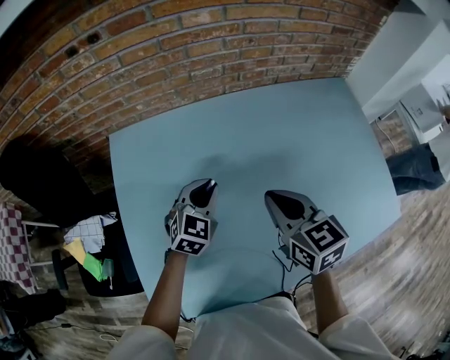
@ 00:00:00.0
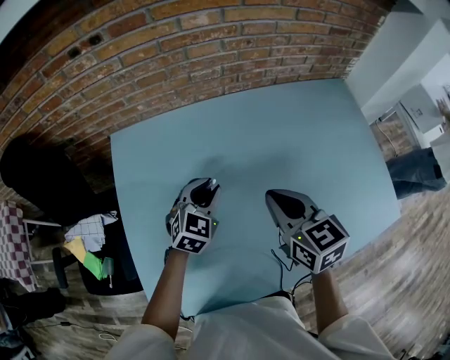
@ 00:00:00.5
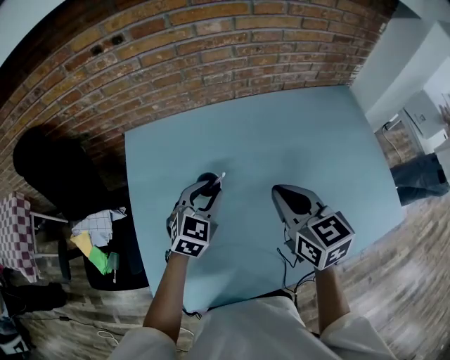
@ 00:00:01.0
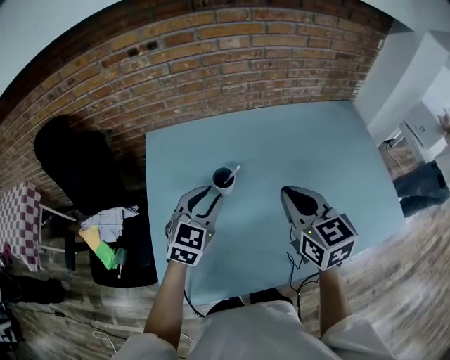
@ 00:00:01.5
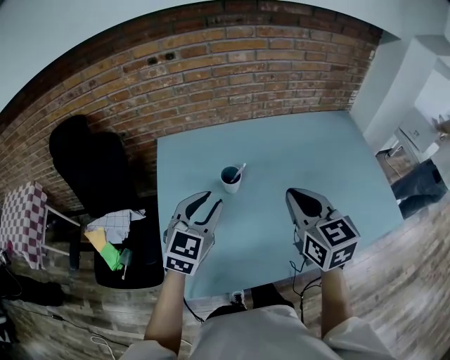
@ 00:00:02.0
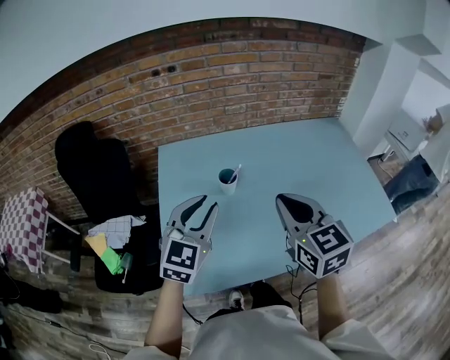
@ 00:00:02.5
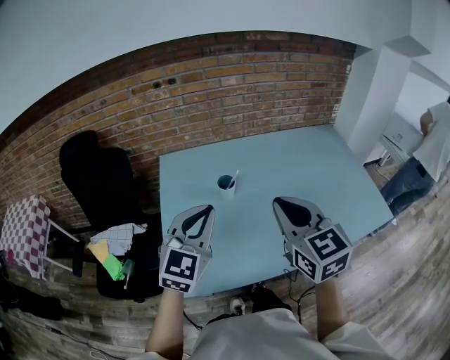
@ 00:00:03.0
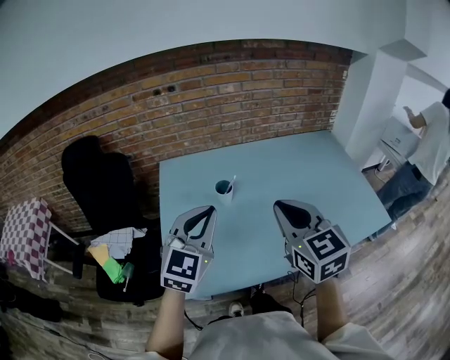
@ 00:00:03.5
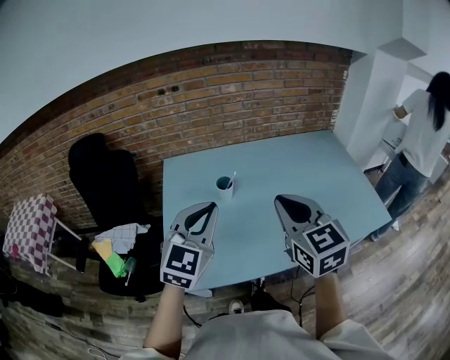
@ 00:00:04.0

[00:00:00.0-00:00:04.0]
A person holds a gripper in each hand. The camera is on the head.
00:00:00.0 to 00:00:02.0: The right gripper travels backward and upward by roughly 15 cm. The left gripper moves backward, upward and to the left, some 25 cm.
00:00:02.0 to 00:00:04.0: Both grippers travel together backward and upward, roughly 15 cm. The left gripper closes up.

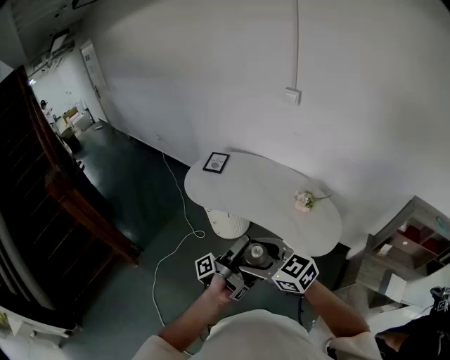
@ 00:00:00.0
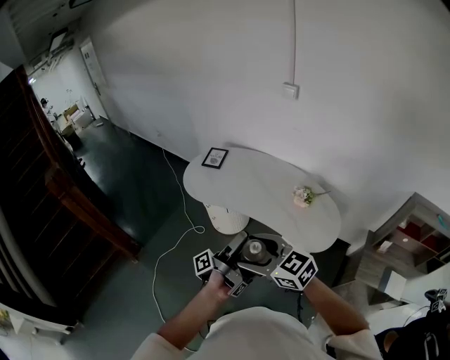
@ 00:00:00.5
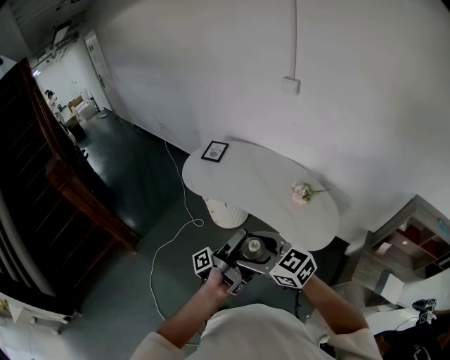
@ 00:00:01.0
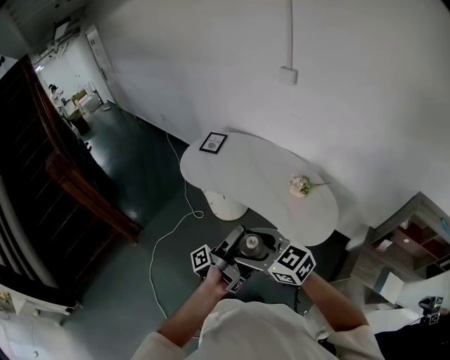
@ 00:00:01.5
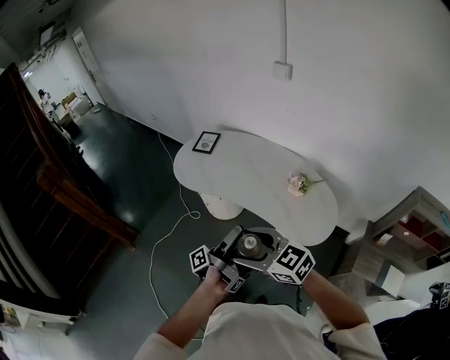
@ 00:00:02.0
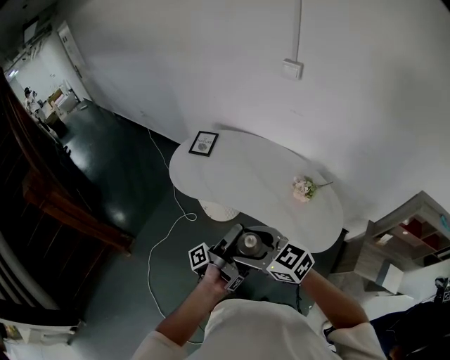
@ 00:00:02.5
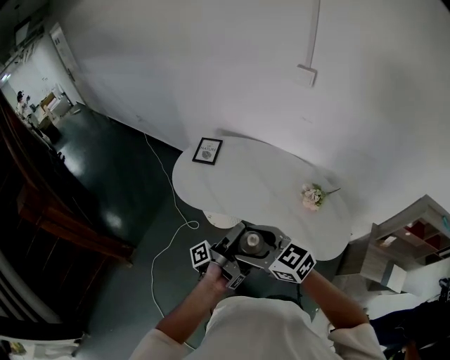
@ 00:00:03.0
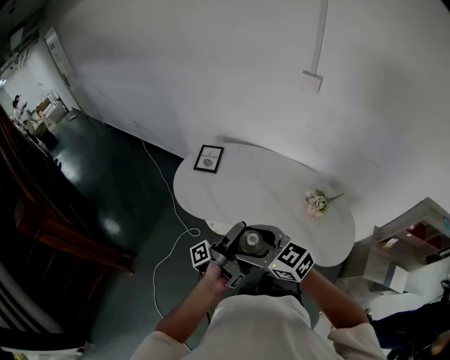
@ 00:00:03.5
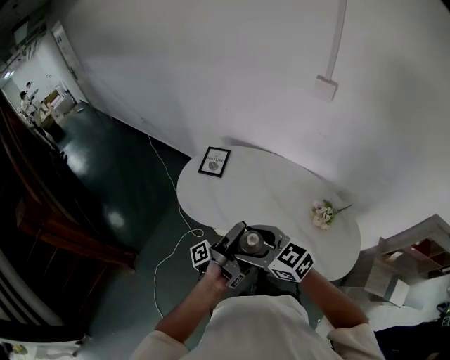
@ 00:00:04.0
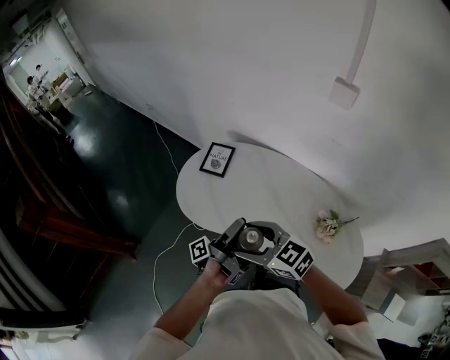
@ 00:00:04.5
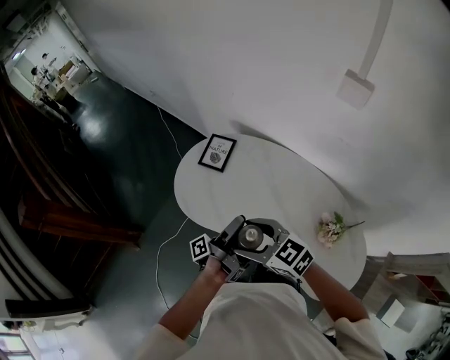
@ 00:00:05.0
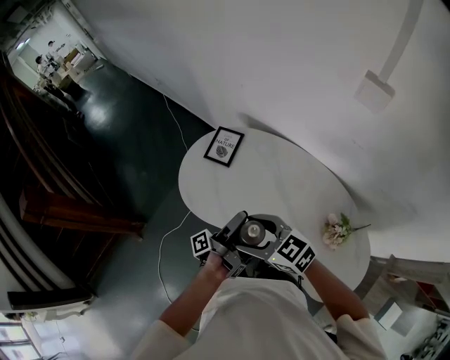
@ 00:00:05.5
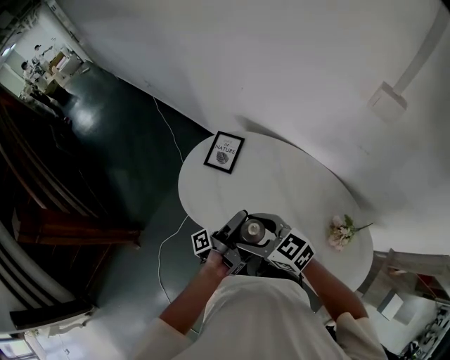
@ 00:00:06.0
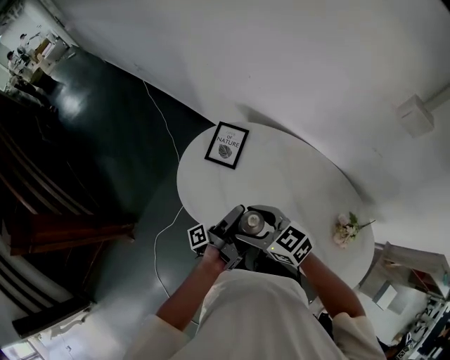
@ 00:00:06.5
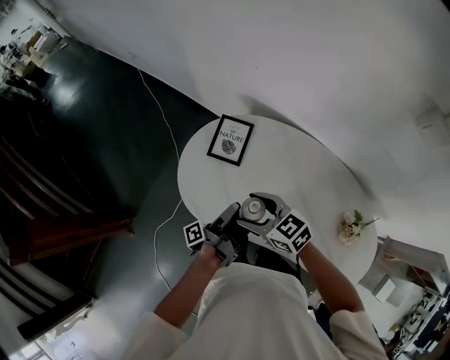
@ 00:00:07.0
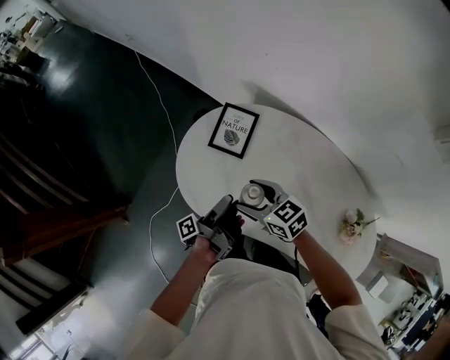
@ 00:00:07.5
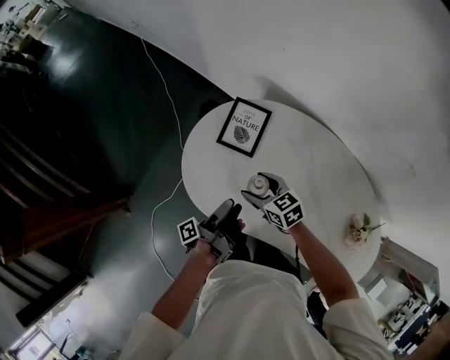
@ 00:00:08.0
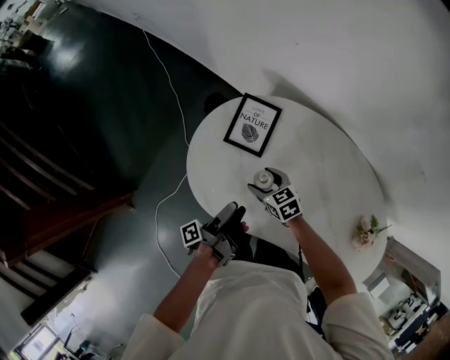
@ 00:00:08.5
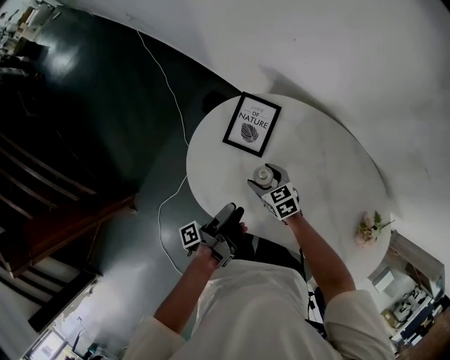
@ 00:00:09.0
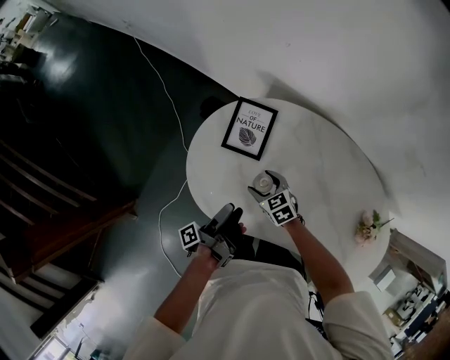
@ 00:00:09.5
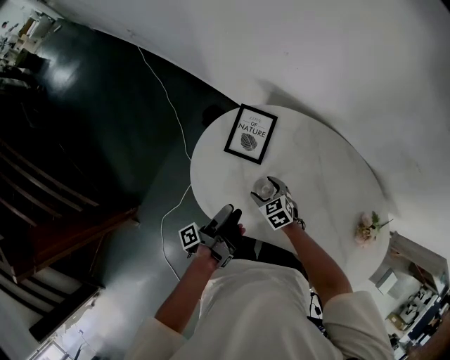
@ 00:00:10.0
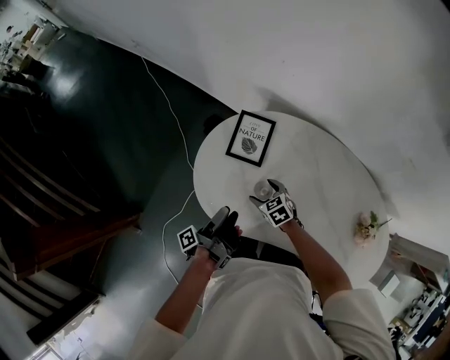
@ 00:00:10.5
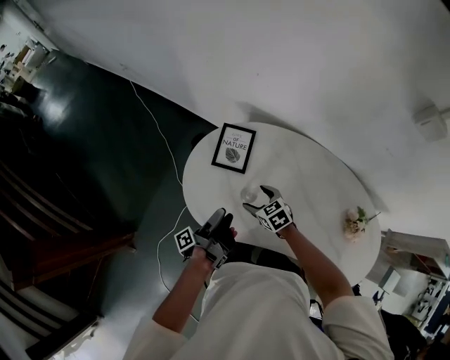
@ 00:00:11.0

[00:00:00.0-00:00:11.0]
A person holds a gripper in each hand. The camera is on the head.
00:00:00.0 to 00:00:02.0: The right gripper shifts by about 10 cm.
00:00:02.0 to 00:00:03.5: The right gripper shifts by roughly 25 cm.
00:00:03.5 to 00:00:05.5: The right gripper ends up roughly 25 cm from where it was.
00:00:05.5 to 00:00:07.5: The right gripper shifts by some 30 cm, and turns by approximately 20 degrees.
00:00:07.5 to 00:00:09.0: The right gripper goes some 20 cm downward.
00:00:09.0 to 00:00:11.0: The right gripper goes about 5 cm upward.

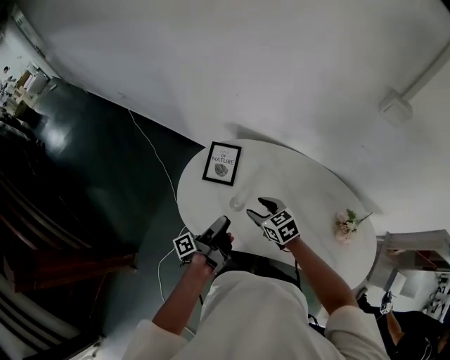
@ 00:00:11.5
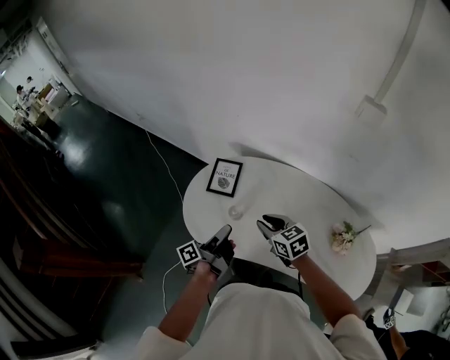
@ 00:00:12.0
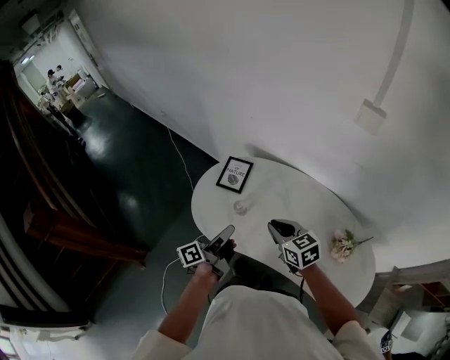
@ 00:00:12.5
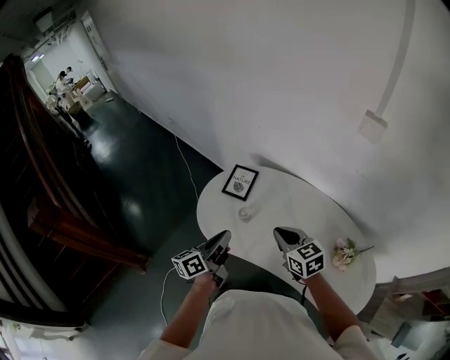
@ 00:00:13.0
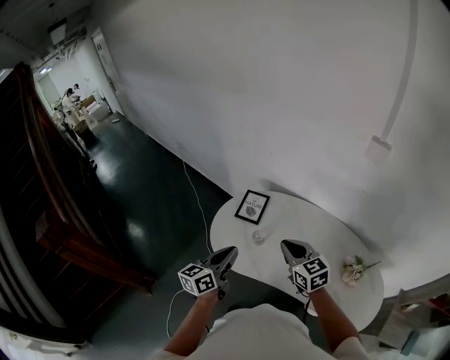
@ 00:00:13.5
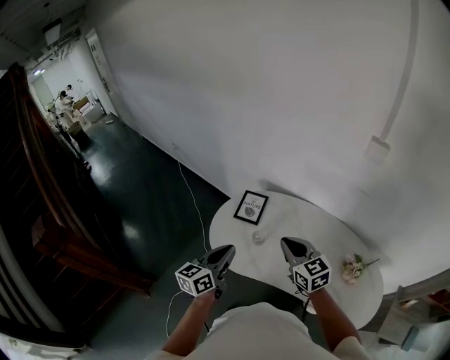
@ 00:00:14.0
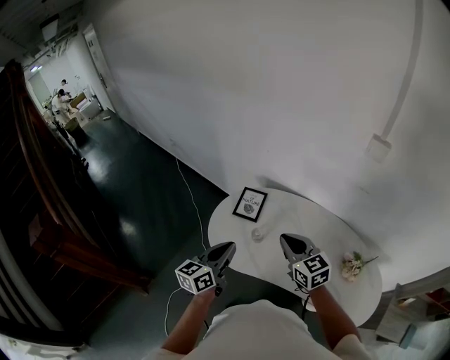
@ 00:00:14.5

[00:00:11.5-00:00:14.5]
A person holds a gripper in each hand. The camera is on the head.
00:00:11.5 to 00:00:13.0: The right gripper shifts approximately 15 cm upward, and closes its fingers.
00:00:13.0 to 00:00:14.5: The right gripper travels upward by some 5 cm.

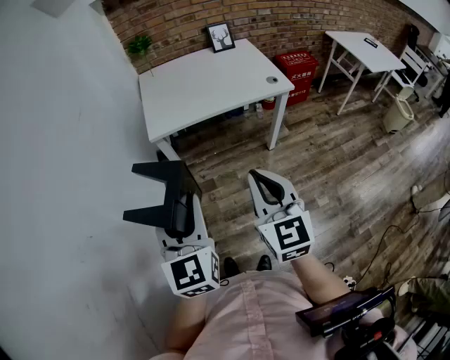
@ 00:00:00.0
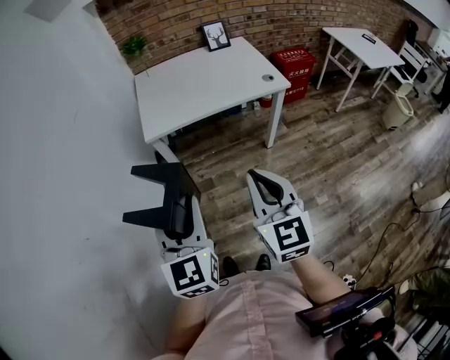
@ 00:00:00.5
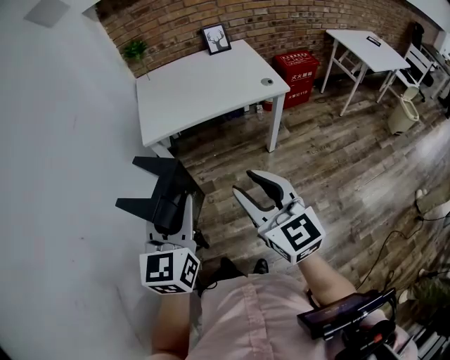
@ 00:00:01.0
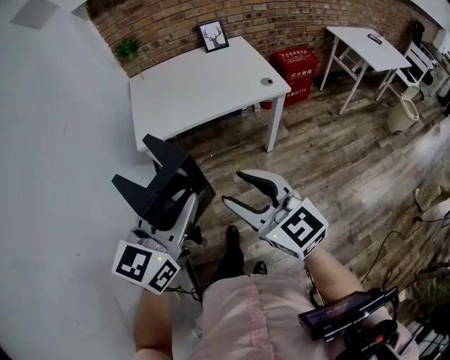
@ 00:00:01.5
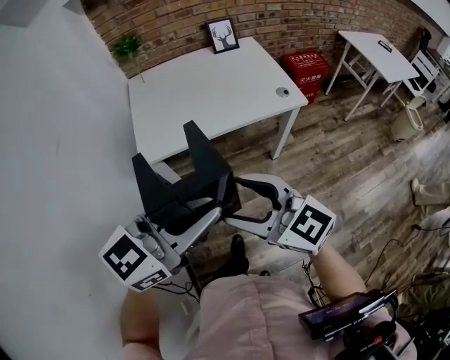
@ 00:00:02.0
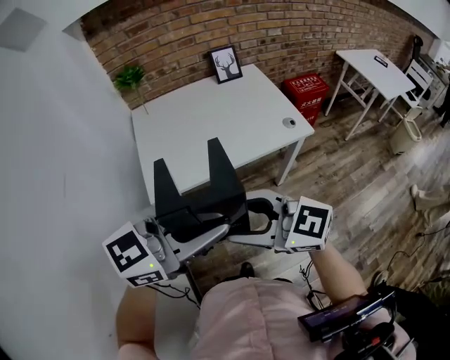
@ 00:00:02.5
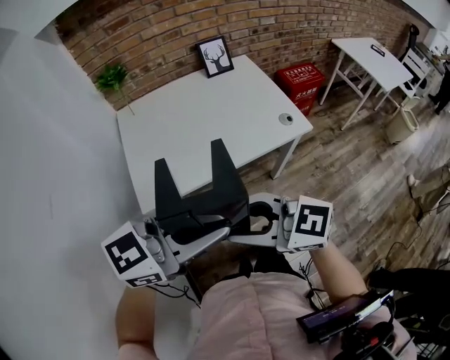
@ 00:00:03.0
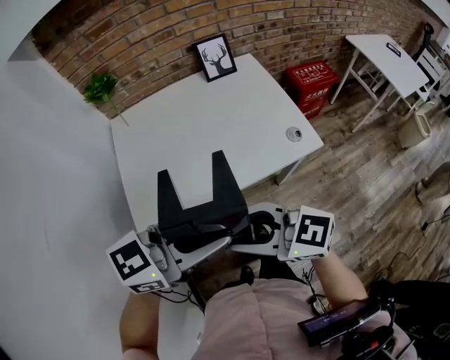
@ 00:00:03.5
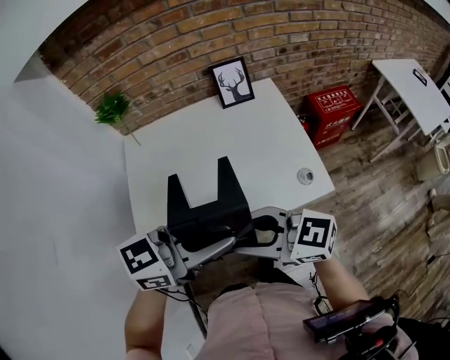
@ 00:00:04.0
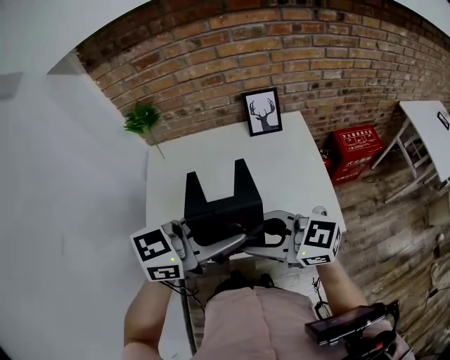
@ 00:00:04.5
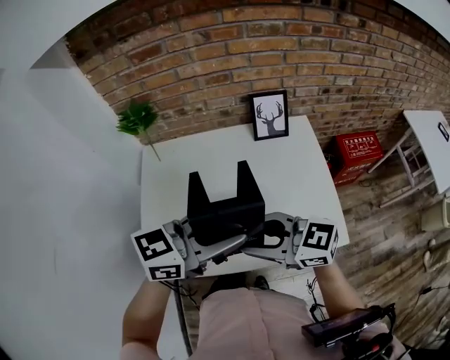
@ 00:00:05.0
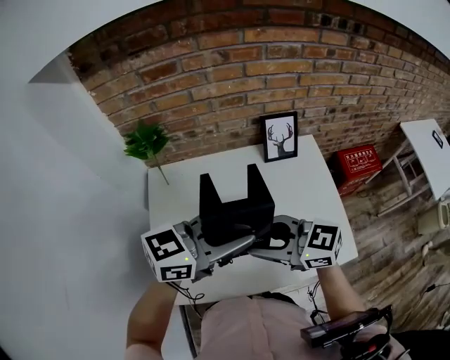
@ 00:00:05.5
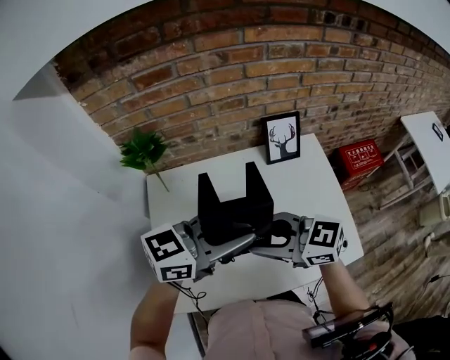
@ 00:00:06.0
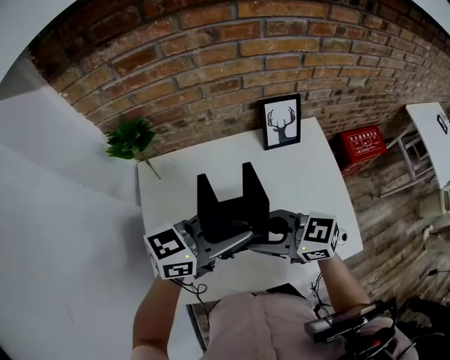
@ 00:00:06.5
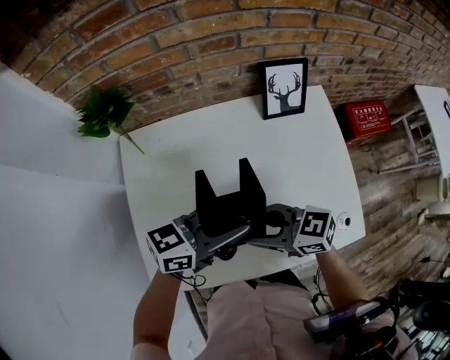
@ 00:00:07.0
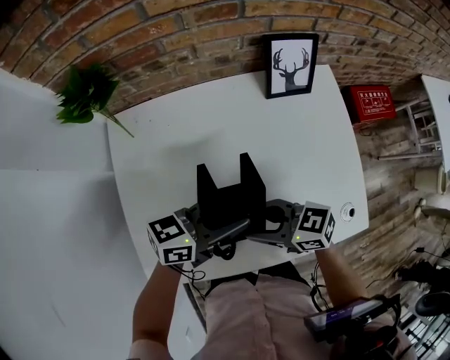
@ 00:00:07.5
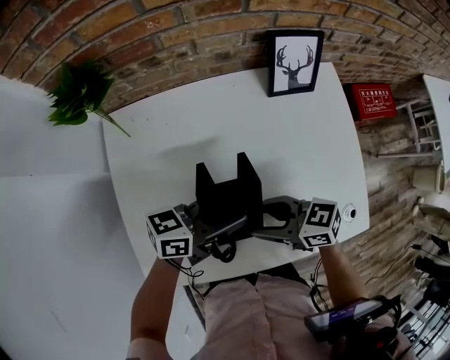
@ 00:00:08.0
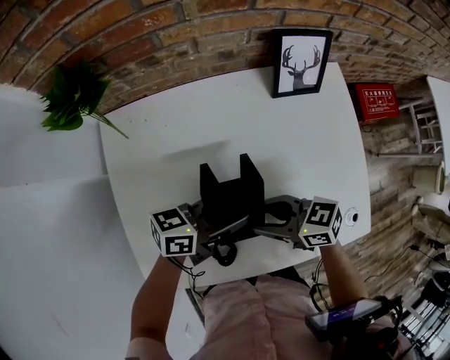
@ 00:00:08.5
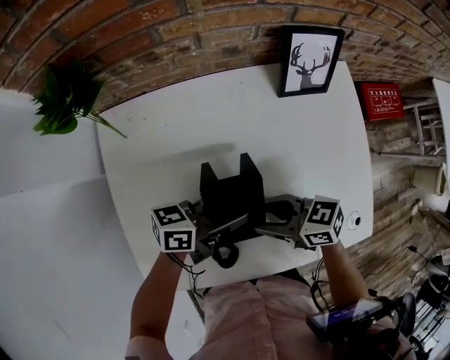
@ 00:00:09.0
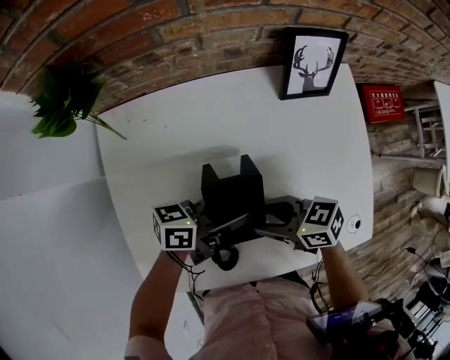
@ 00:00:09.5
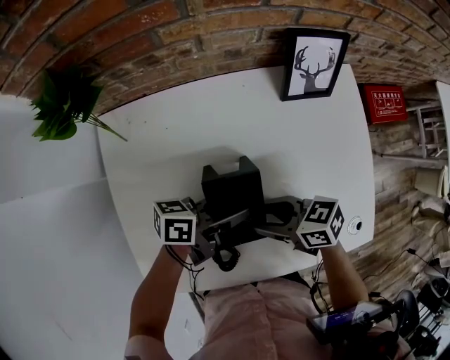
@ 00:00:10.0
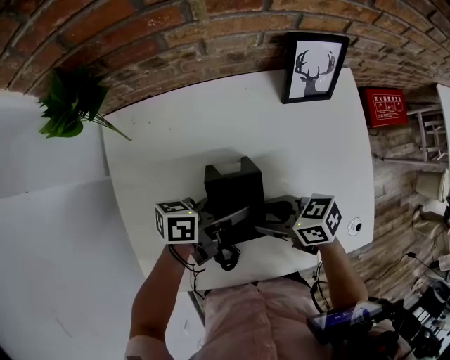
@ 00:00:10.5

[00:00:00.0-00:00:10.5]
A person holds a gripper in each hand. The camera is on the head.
00:00:00.0 to 00:00:02.0: The right gripper moves forward, roughly 15 cm, changes its angle by about 40 degrees, and opens its fingers. The left gripper is displaced forward and to the right by roughly 20 cm, and turns by approximately 60 degrees.
00:00:02.0 to 00:00:04.0: The right gripper changes place by some 30 cm, changes its angle by approximately 20 degrees, and closes its fingers, while the left gripper moves some 35 cm.
00:00:04.0 to 00:00:06.5: The left gripper ends up approximately 25 cm from where it was. Meanwhile the right gripper ends up roughly 25 cm from where it was.
00:00:06.5 to 00:00:08.5: Both grippers move downward, approximately 20 cm. The right gripper turns by about 20 degrees. Meanwhile the left gripper rotates some 30 degrees.
00:00:08.5 to 00:00:10.5: The left gripper moves approximately 5 cm, and swivels some 20 degrees.
